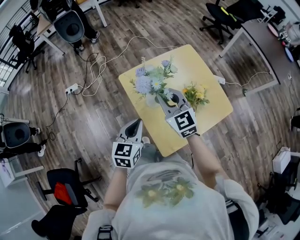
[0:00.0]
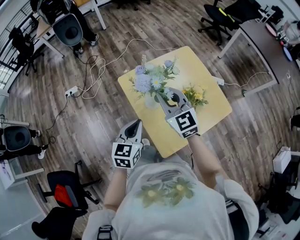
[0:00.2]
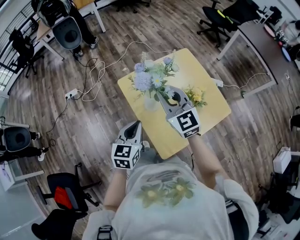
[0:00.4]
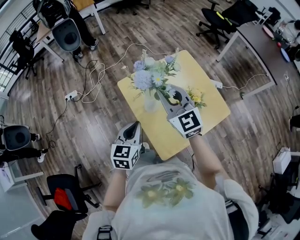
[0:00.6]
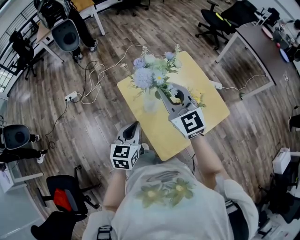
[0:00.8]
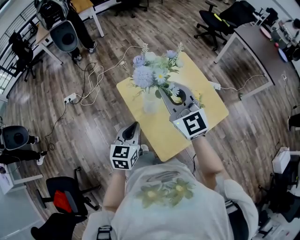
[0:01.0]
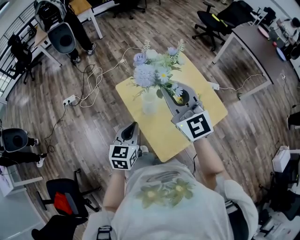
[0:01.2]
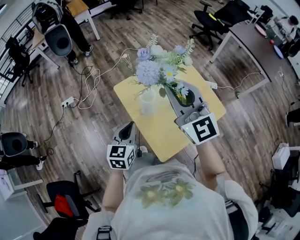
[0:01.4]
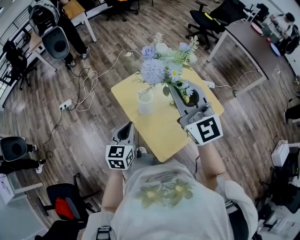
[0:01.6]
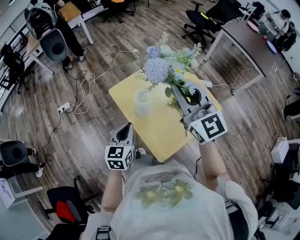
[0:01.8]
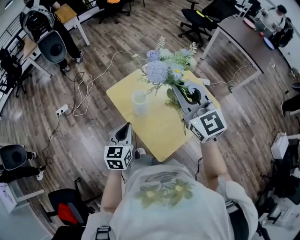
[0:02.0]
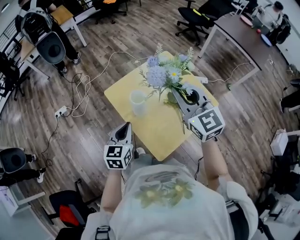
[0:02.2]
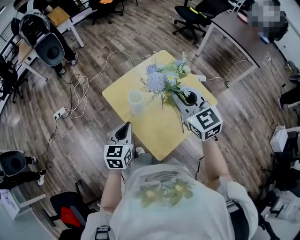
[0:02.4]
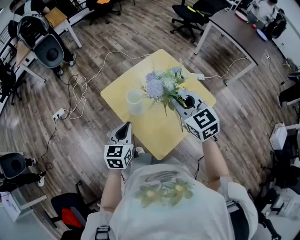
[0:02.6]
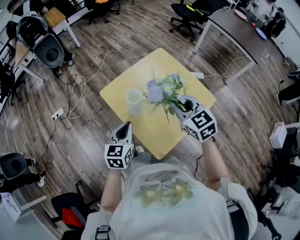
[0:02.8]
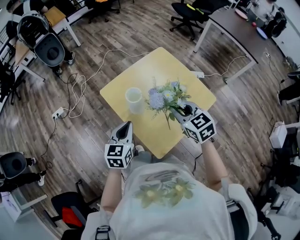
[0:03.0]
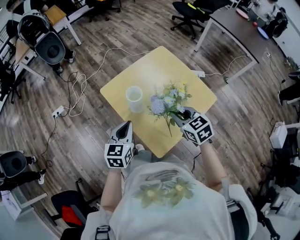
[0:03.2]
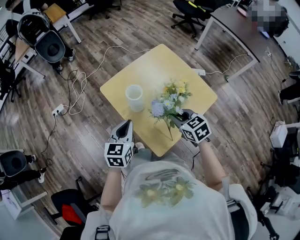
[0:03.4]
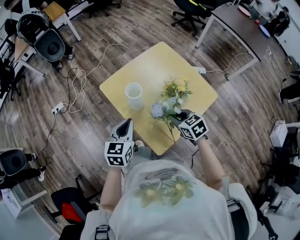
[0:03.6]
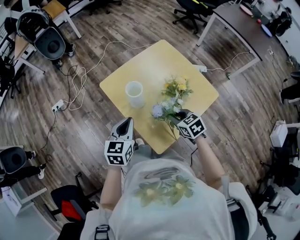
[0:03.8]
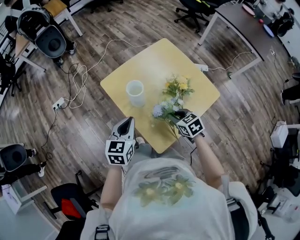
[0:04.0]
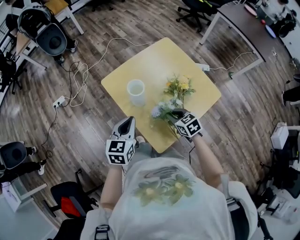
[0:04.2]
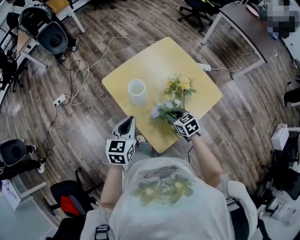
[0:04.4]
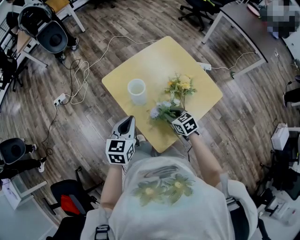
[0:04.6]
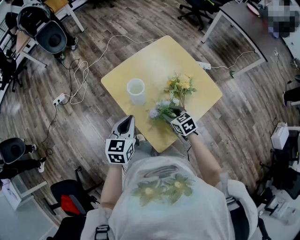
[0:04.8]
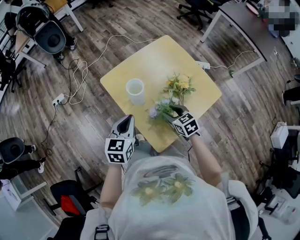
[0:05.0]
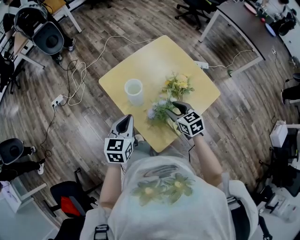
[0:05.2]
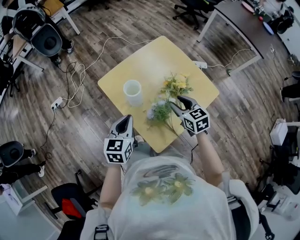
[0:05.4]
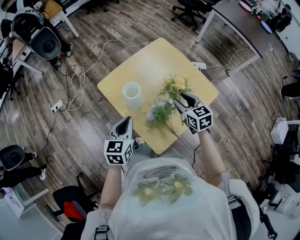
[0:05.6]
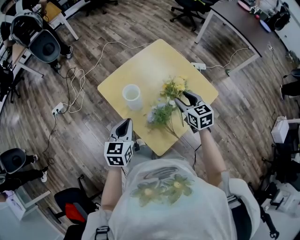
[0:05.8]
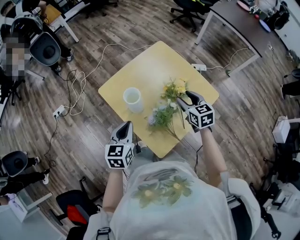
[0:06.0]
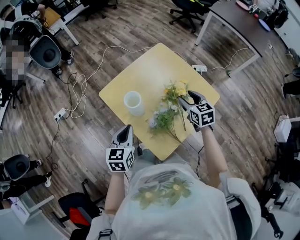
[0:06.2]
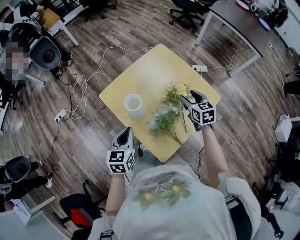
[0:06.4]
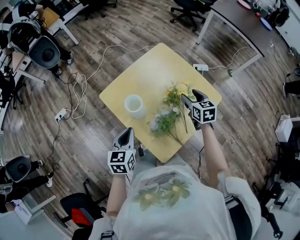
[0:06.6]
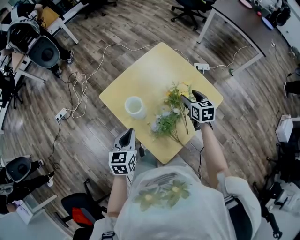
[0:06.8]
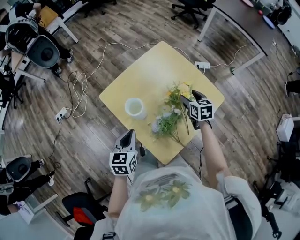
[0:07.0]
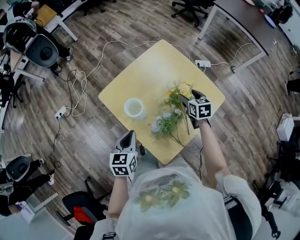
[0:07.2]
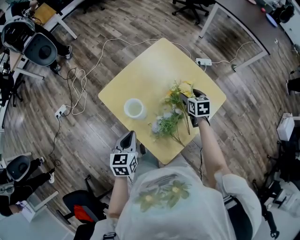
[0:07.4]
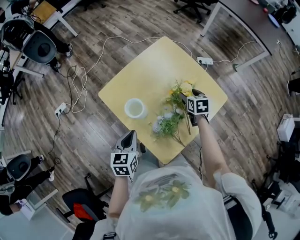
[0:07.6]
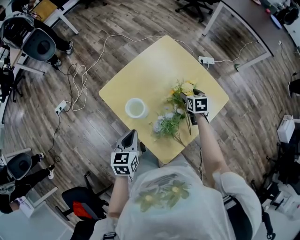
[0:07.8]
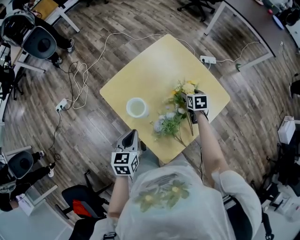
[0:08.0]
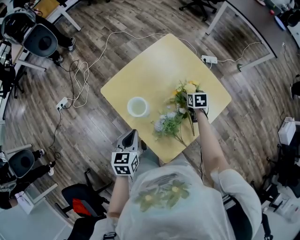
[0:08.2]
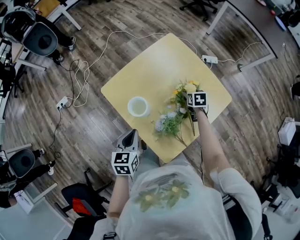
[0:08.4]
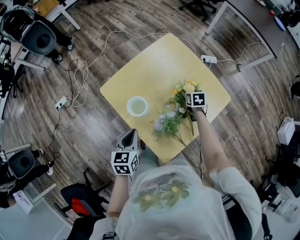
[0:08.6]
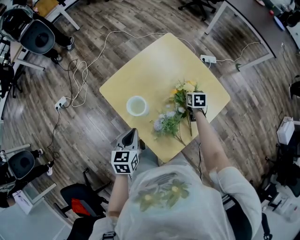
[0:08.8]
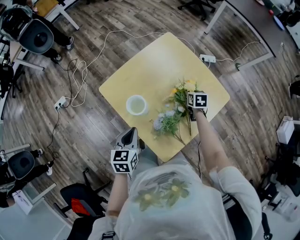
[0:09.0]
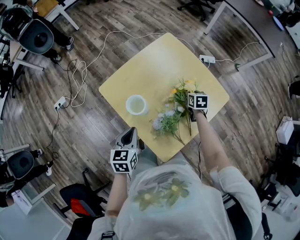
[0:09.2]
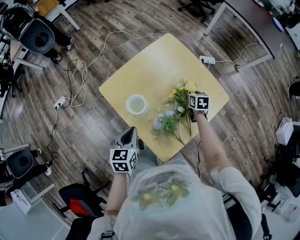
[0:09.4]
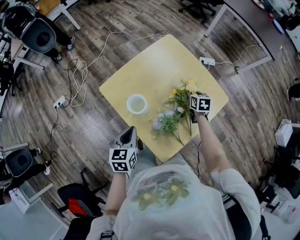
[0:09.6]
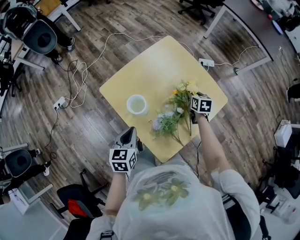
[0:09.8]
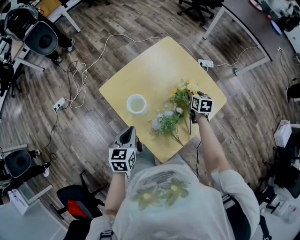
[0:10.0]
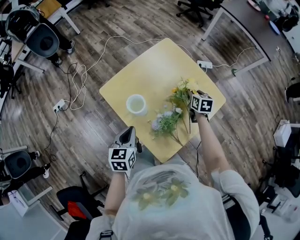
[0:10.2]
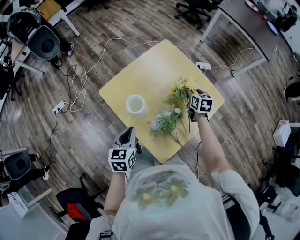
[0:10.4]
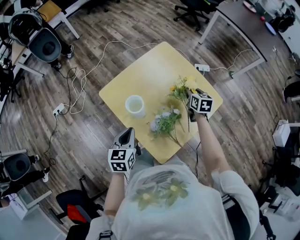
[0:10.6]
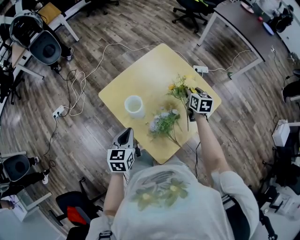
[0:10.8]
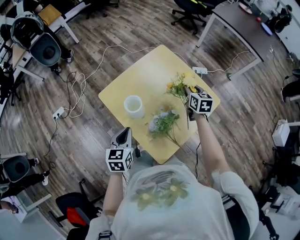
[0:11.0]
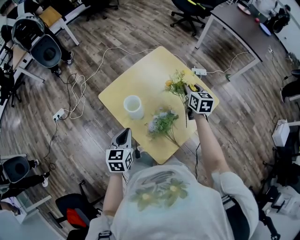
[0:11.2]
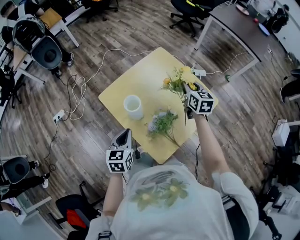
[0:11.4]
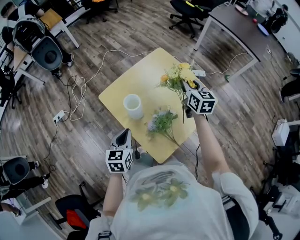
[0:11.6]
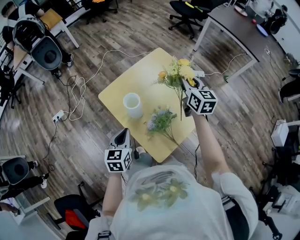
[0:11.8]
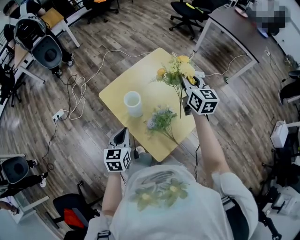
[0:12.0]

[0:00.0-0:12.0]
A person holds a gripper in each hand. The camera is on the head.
0:00.0 to 0:01.6: The right gripper moves upward, approximately 20 cm, and rotates about 20 degrees.
0:01.6 to 0:03.0: The right gripper moves downward, roughly 20 cm, and angles its fingers downward, by about 40 degrees.
0:03.0 to 0:04.4: The right gripper is displaced downward by about 20 cm.
0:04.4 to 0:06.0: The right gripper heads upward, to the right and forward, covering approximately 15 cm, swivels some 20 degrees, and opens its fingers.
0:06.0 to 0:07.6: The left gripper moves downward and forward, approximately 10 cm, while the right gripper shifts approximately 20 cm downward and forward, and changes its angle by some 20 degrees.
0:07.6 to 0:09.0: The right gripper shifts roughly 5 cm downward, and closes up.
0:09.0 to 0:10.4: The right gripper shifts approximately 10 cm upward.
0:10.4 to 0:12.0: The right gripper is displaced upward by approximately 25 cm, and angles its fingers upward, by about 30 degrees. Meanwhile the left gripper is displaced backward by roughly 5 cm.

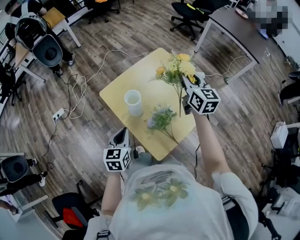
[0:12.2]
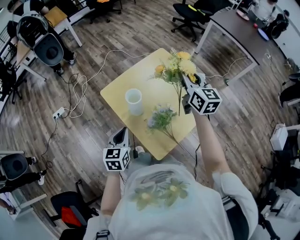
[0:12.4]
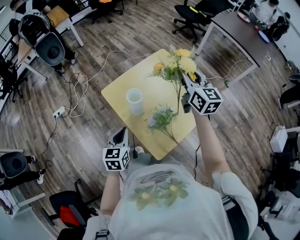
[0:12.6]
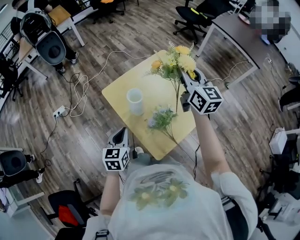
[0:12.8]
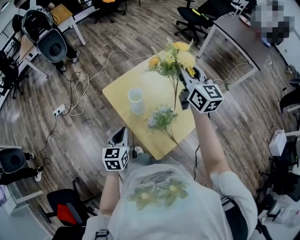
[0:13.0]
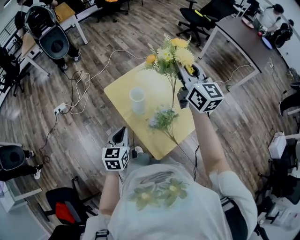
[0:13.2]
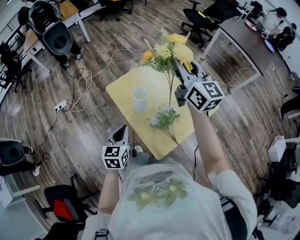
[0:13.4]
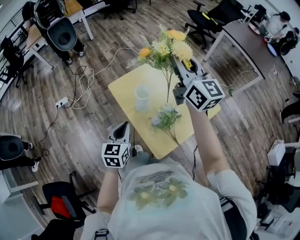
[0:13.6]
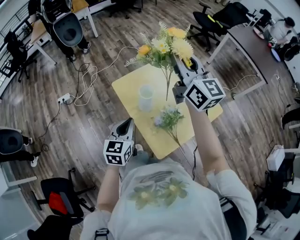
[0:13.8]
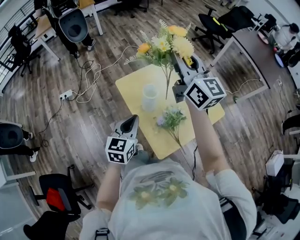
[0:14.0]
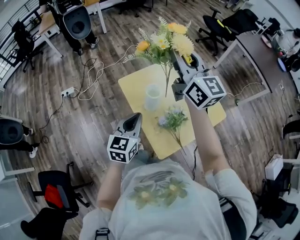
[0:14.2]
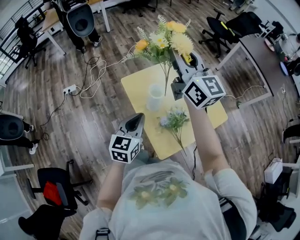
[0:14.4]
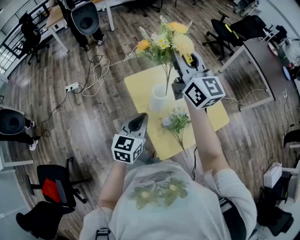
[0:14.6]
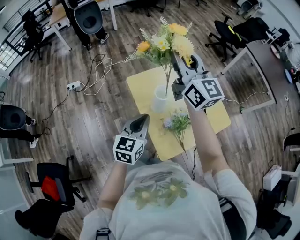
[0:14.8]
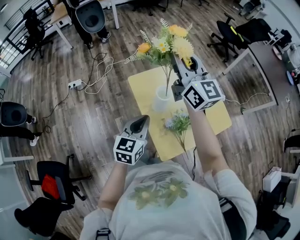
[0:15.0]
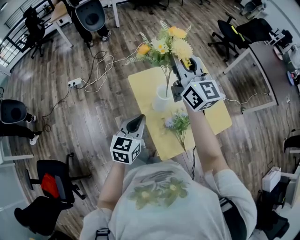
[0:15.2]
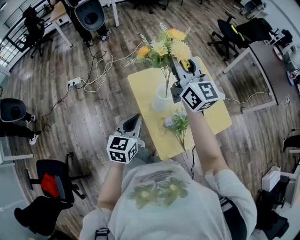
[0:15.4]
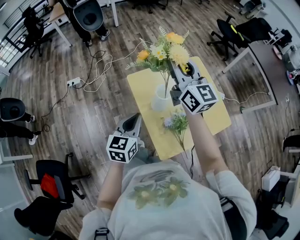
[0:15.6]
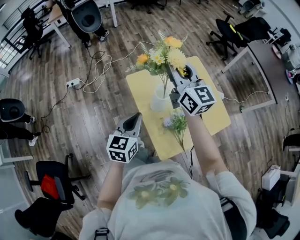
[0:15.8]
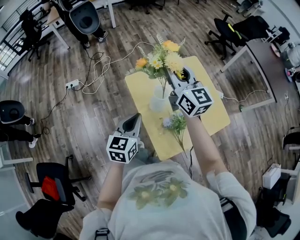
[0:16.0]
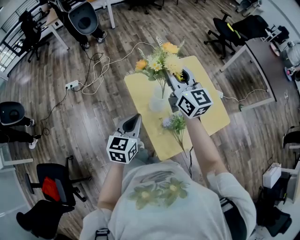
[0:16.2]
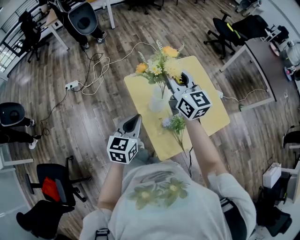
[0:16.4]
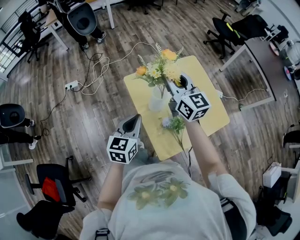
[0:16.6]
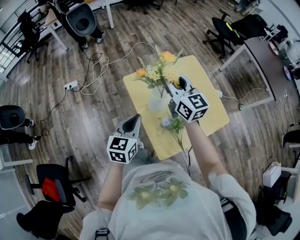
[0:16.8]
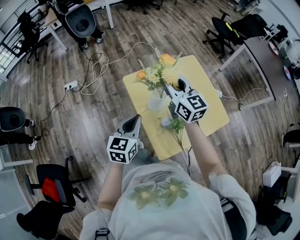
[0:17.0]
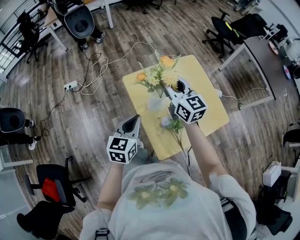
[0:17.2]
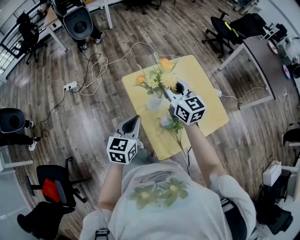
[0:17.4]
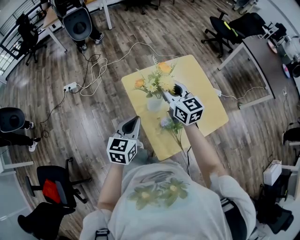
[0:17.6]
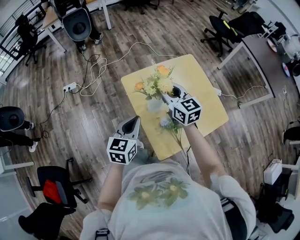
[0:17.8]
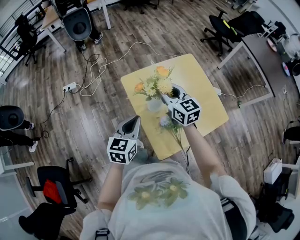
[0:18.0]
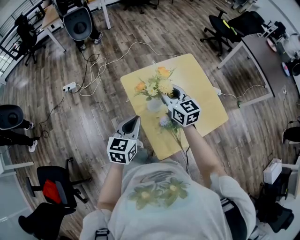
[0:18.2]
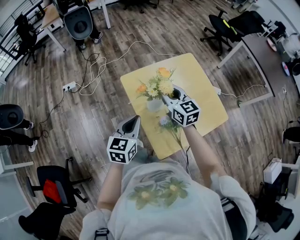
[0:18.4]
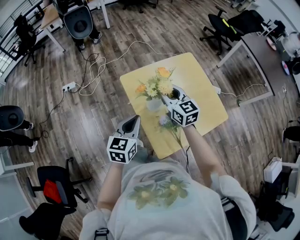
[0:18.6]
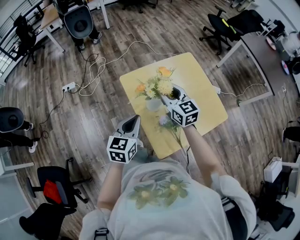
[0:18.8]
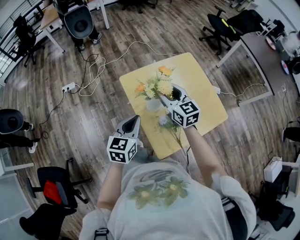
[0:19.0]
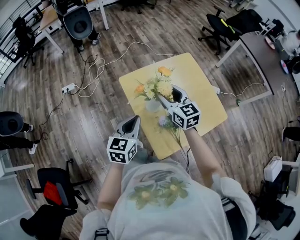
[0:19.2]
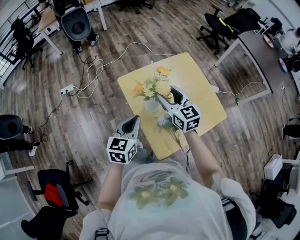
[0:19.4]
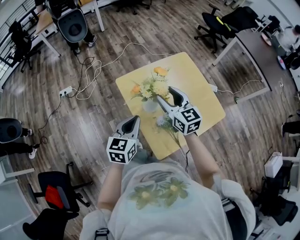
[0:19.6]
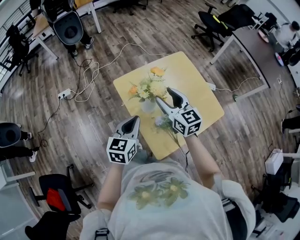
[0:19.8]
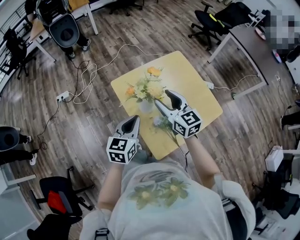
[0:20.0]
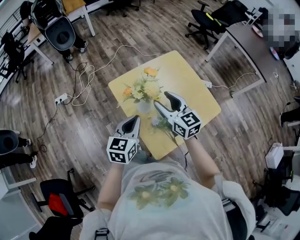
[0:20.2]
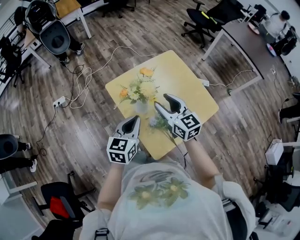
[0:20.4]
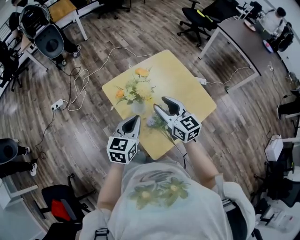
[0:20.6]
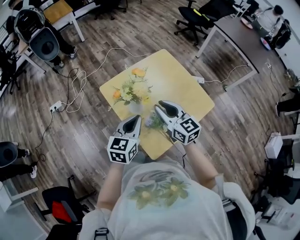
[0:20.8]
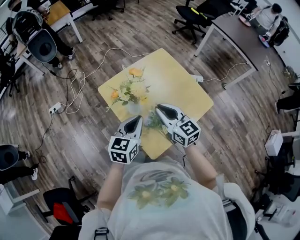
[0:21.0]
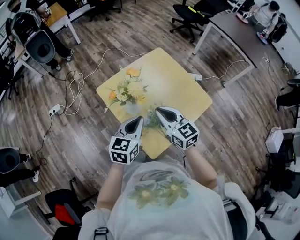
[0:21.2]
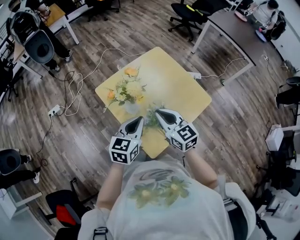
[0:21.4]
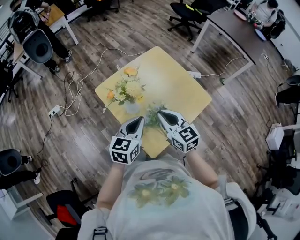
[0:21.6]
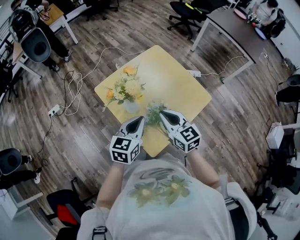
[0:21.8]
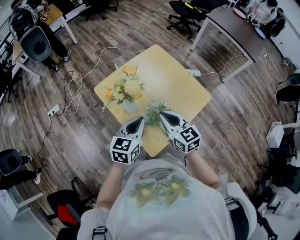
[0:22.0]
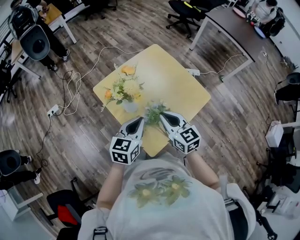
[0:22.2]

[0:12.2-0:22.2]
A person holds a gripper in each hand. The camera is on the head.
0:12.2 to 0:13.6: The right gripper heads upward and to the left, covering approximately 20 cm, and turns by some 20 degrees.
0:13.6 to 0:15.0: The right gripper moves to the left, about 10 cm.
0:15.0 to 0:16.4: The right gripper moves downward, approximately 10 cm.
0:16.4 to 0:18.0: The right gripper shifts some 10 cm downward.
0:18.0 to 0:19.4: The right gripper opens its fingers.
0:19.4 to 0:20.8: The right gripper heads backward and to the right, covering approximately 10 cm, and closes up. Meanwhile the left gripper is displaced to the right by approximately 10 cm.
0:20.8 to 0:22.2: The right gripper shifts approximately 5 cm backward.

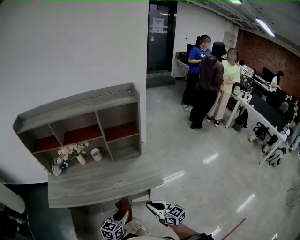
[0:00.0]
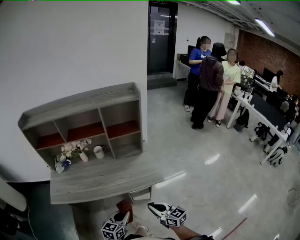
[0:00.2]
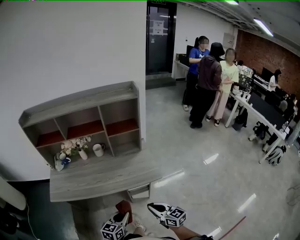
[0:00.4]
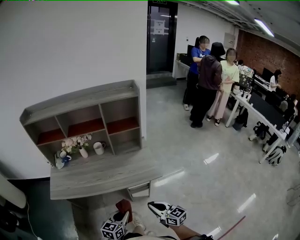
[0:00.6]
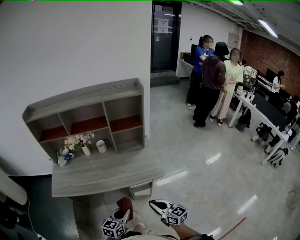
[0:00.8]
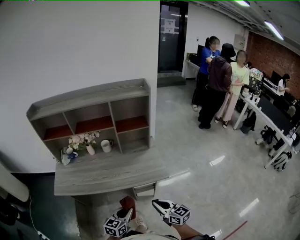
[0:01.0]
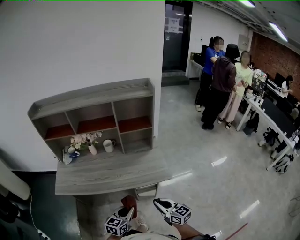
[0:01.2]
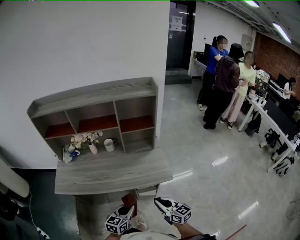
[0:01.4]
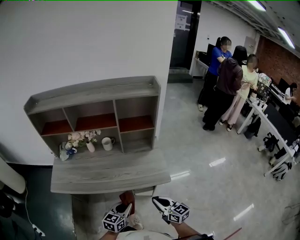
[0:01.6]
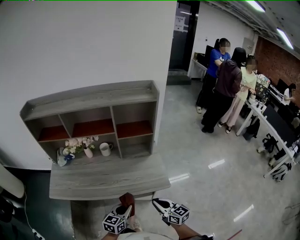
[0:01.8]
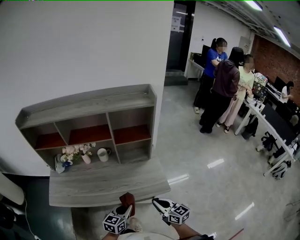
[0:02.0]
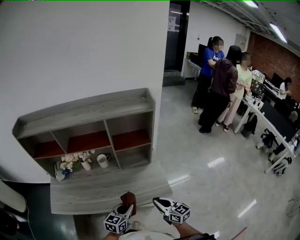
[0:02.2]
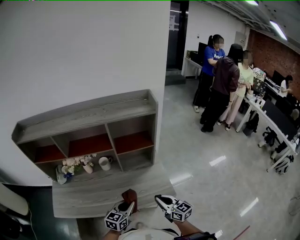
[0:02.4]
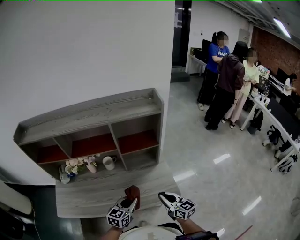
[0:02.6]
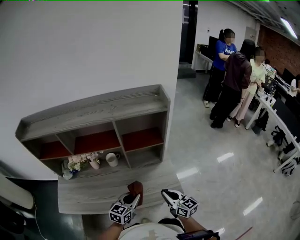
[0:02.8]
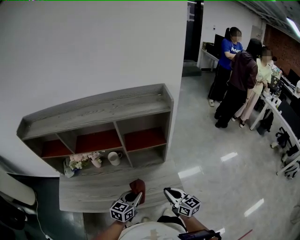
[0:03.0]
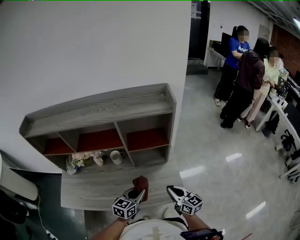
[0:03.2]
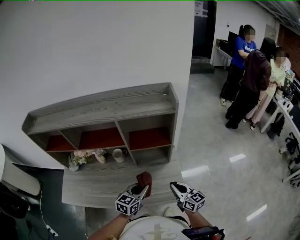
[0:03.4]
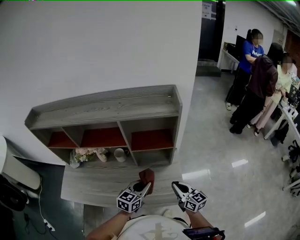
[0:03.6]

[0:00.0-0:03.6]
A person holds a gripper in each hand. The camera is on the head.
0:00.0 to 0:01.8: The right gripper reaches approximately 10 cm backward, then returns. Meanwhile the left gripper travels backward and back again, approximately 10 cm each way.
0:01.8 to 0:03.6: The two grippers go approximately 25 cm forward.
